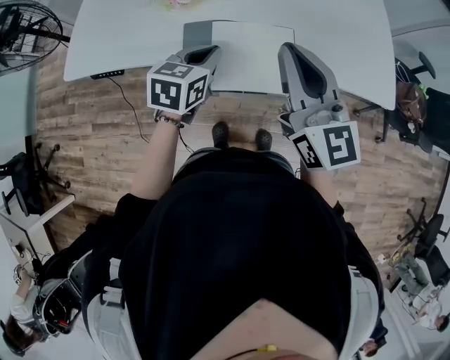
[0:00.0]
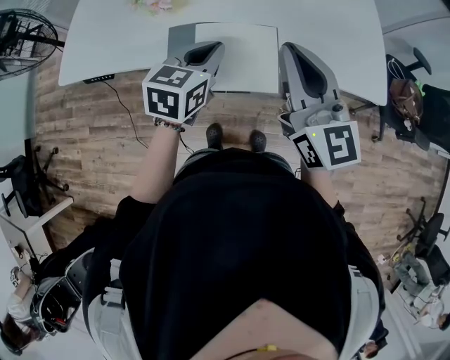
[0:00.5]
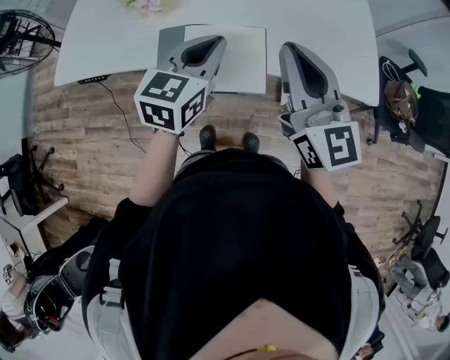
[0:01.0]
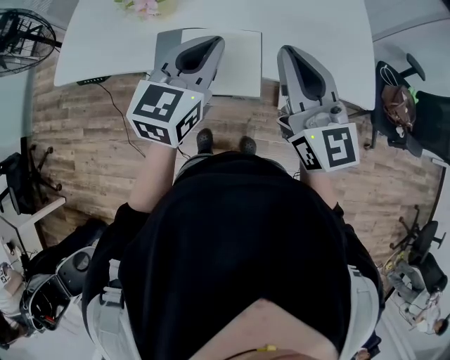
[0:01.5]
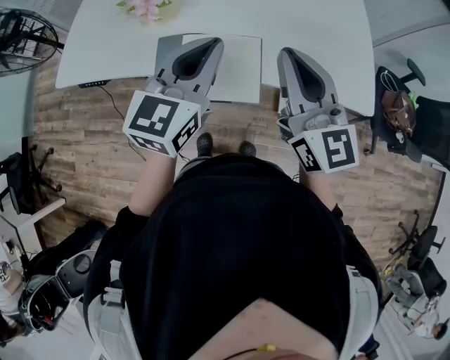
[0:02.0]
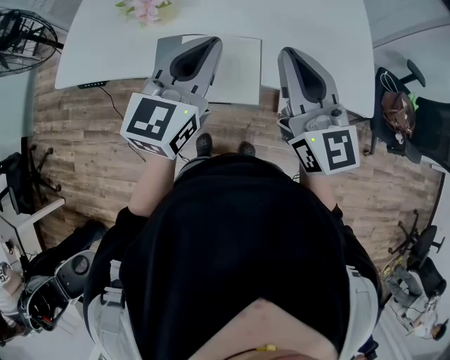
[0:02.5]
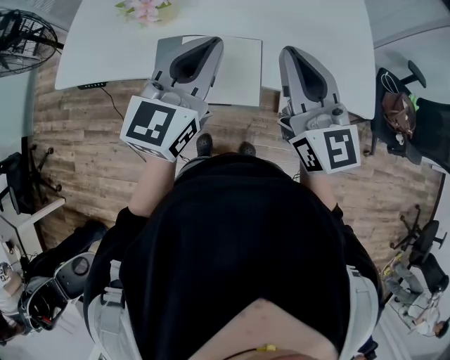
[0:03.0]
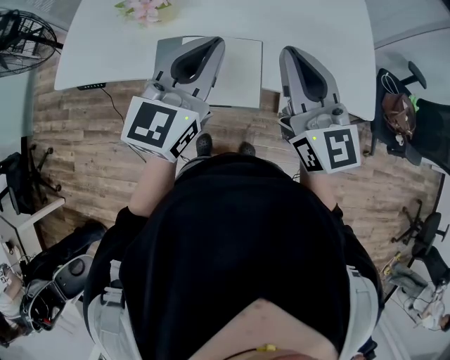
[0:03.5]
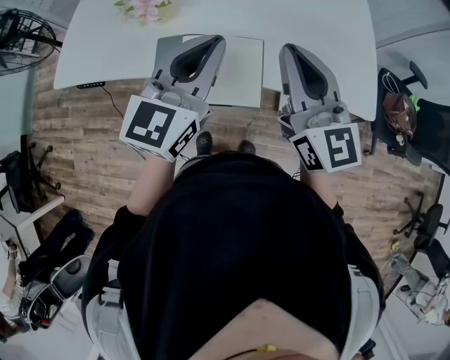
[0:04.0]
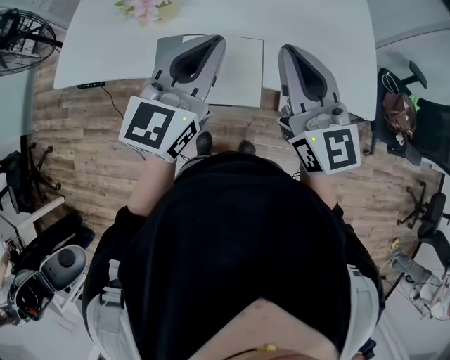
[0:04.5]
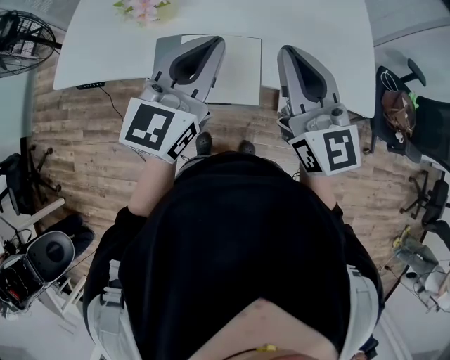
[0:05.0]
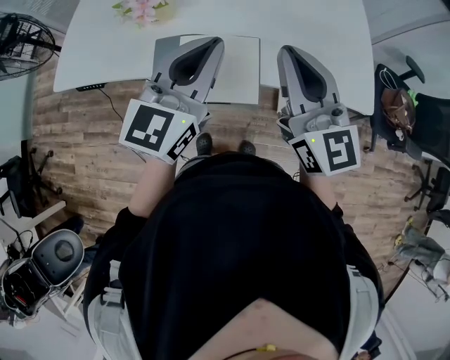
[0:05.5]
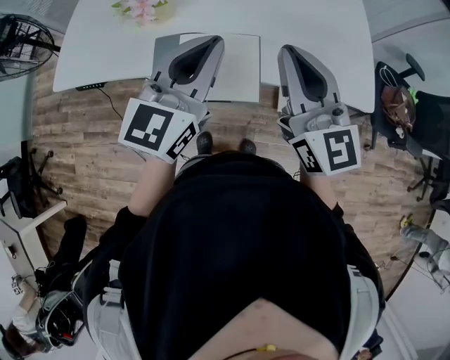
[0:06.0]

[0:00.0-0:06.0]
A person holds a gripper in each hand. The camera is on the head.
0:00.0 to 0:02.0: The right gripper shifts some 10 cm to the right. Meanwhile the left gripper shifts some 20 cm upward and to the right, and rotates roughly 30 degrees.
0:02.0 to 0:06.0: The grippers stay close to where they were, moving slightly.

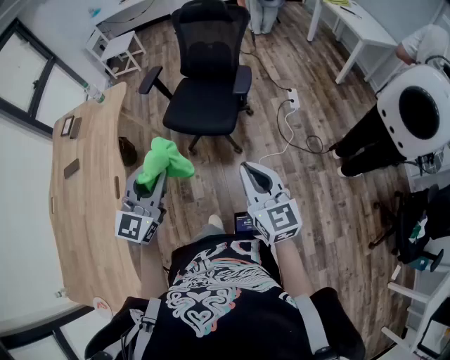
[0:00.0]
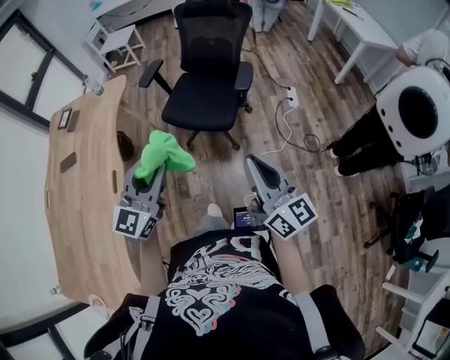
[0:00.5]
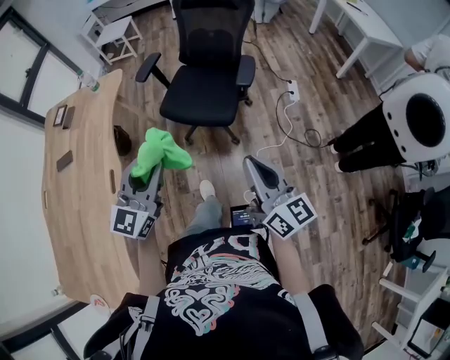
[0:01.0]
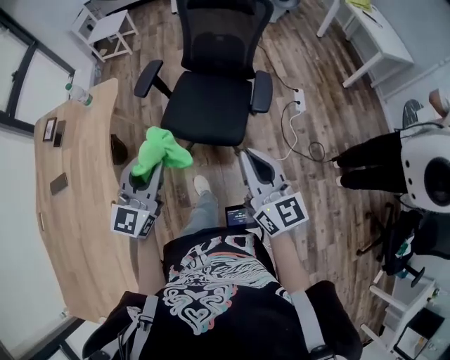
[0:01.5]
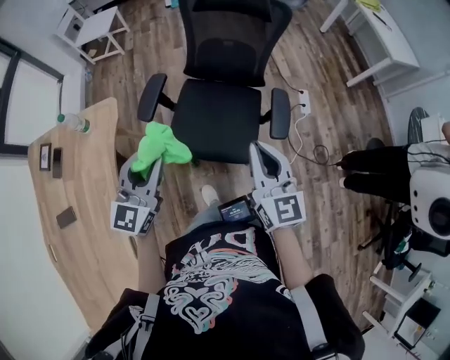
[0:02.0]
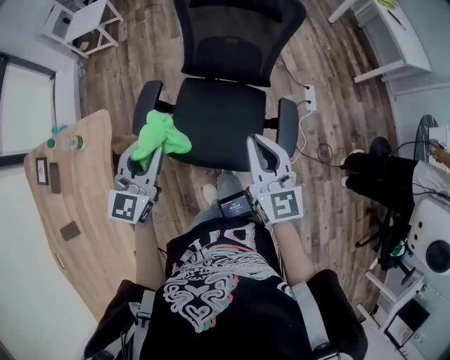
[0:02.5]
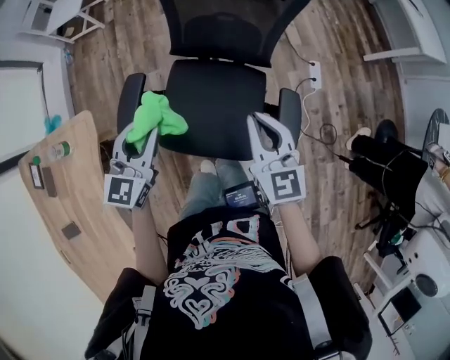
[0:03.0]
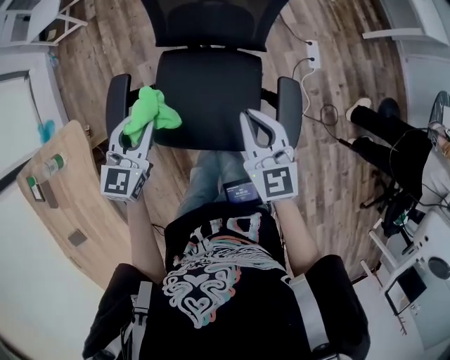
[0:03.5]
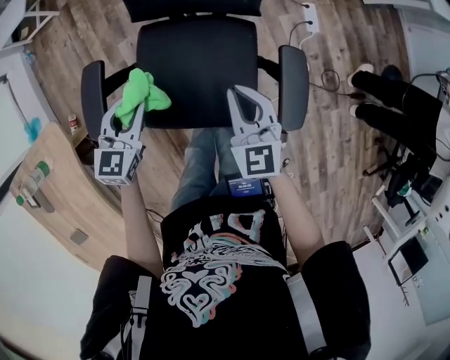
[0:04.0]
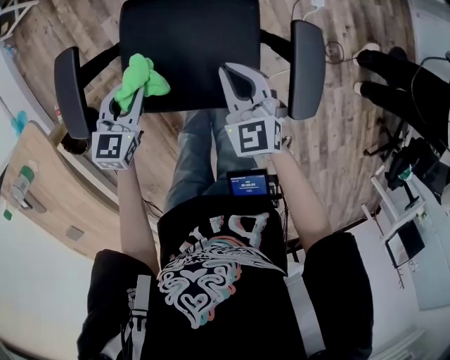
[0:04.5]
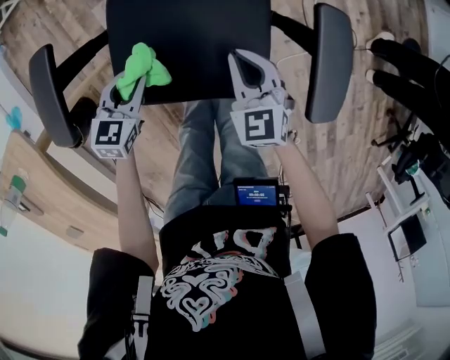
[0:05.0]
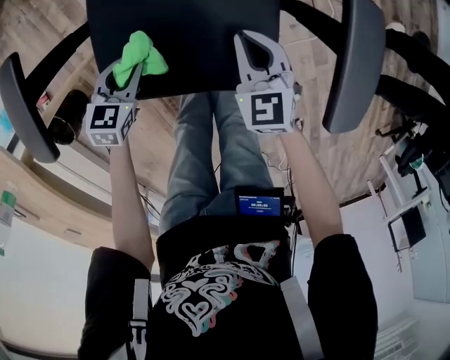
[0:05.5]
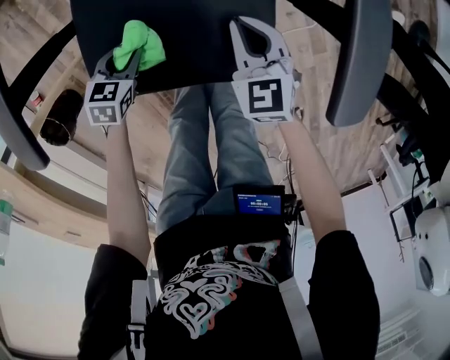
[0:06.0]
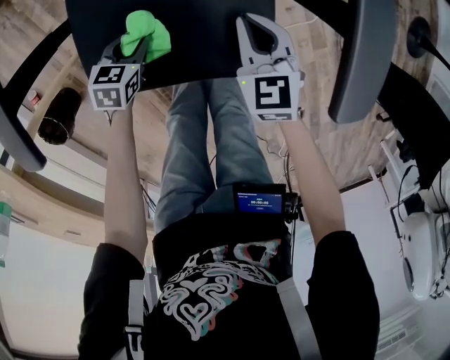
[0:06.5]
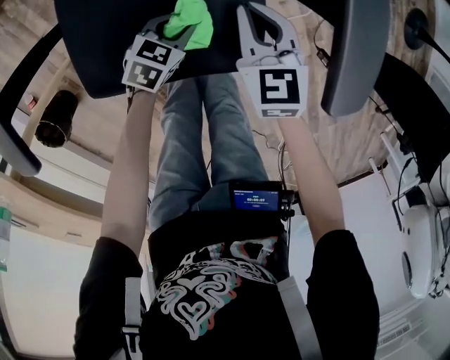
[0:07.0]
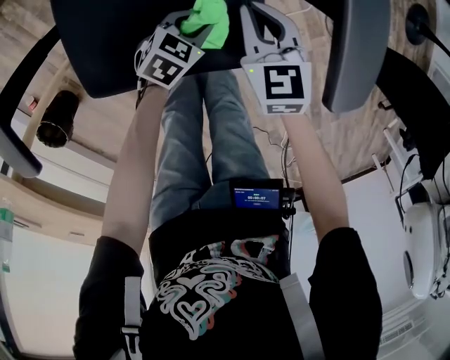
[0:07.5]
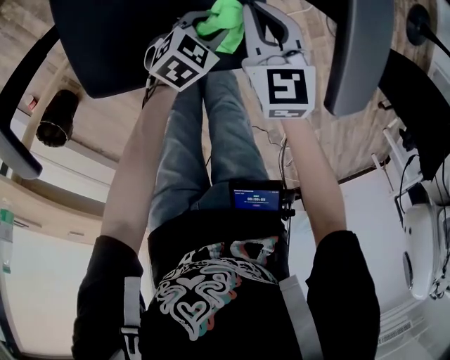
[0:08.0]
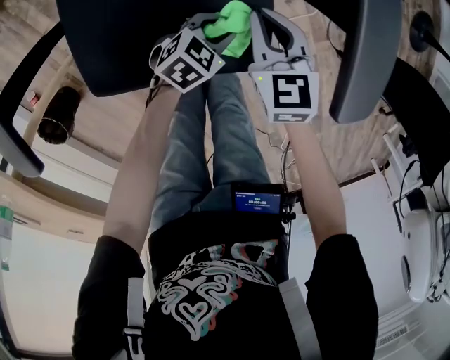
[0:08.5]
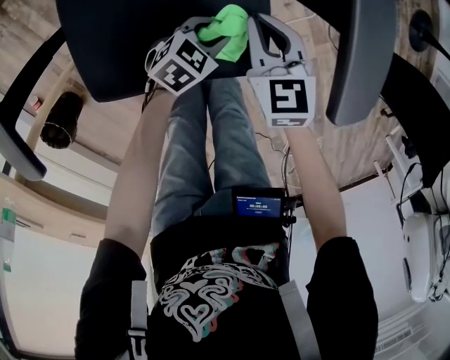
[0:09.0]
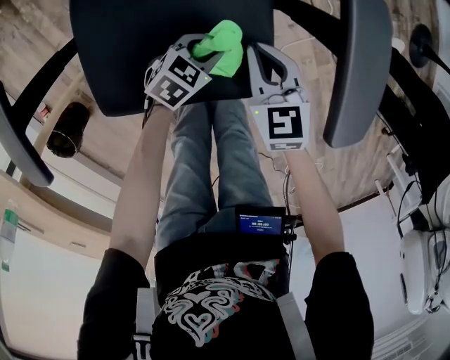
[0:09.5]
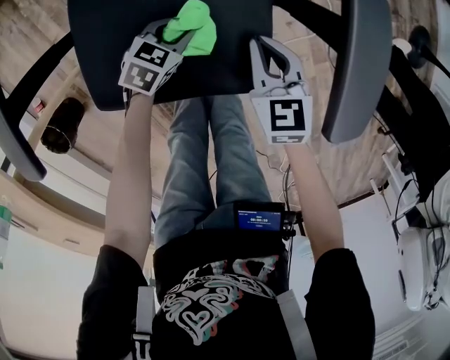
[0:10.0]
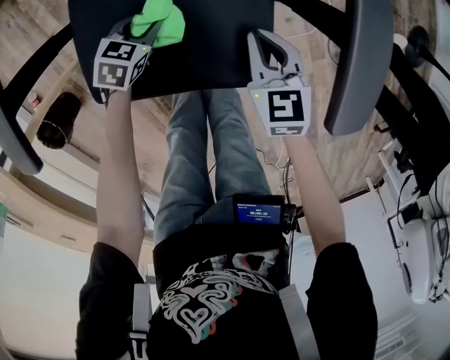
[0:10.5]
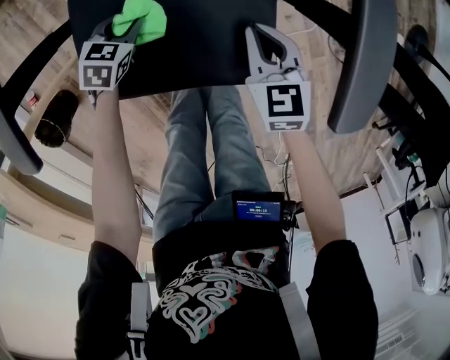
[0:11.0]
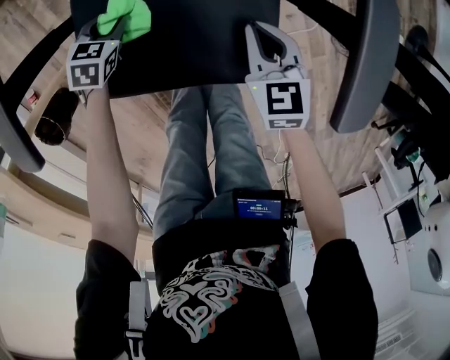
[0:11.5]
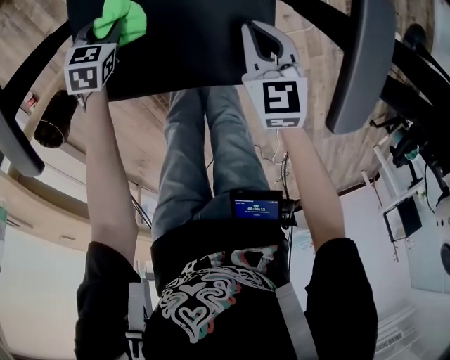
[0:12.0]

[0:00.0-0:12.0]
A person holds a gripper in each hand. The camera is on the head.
0:00.0 to 0:02.0: Both grippers are carried forward, approximately 40 cm.
0:02.0 to 0:04.0: The grippers both shift downward and forward by some 40 cm. The right gripper turns by approximately 30 degrees, while the left gripper turns by some 30 degrees.
0:04.0 to 0:06.0: Both grippers travel together downward, approximately 30 cm. The left gripper changes its angle by about 30 degrees.
0:06.0 to 0:08.0: The left gripper moves to the right, some 25 cm, and turns by roughly 30 degrees.
0:08.0 to 0:10.0: The left gripper goes approximately 10 cm to the left.
0:10.0 to 0:12.0: The left gripper moves to the left, approximately 15 cm, and swivels some 20 degrees.

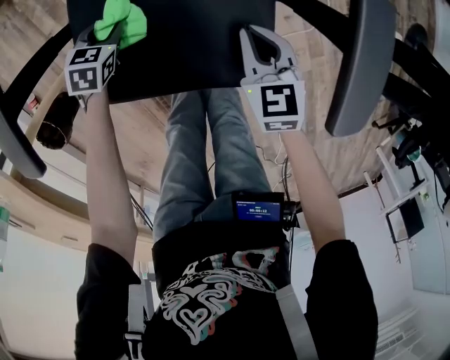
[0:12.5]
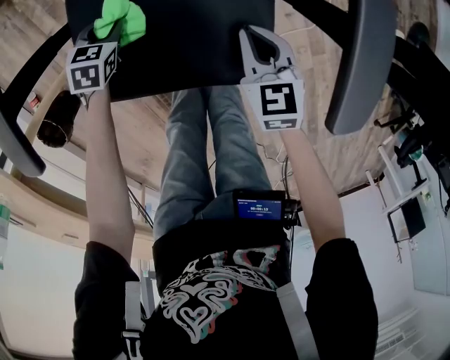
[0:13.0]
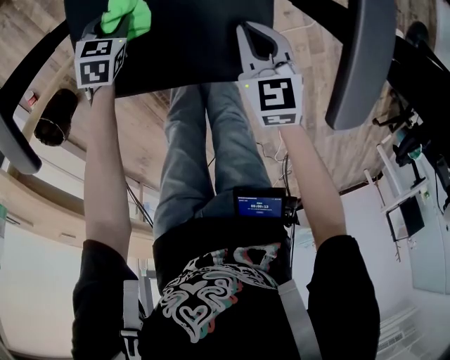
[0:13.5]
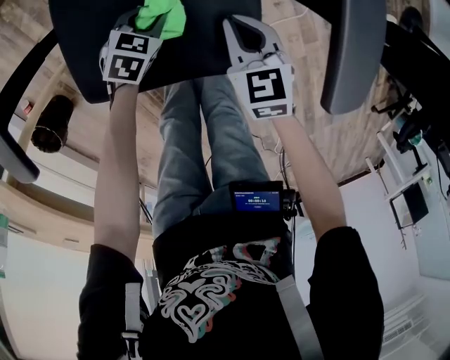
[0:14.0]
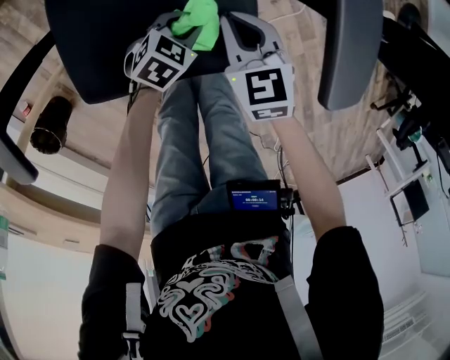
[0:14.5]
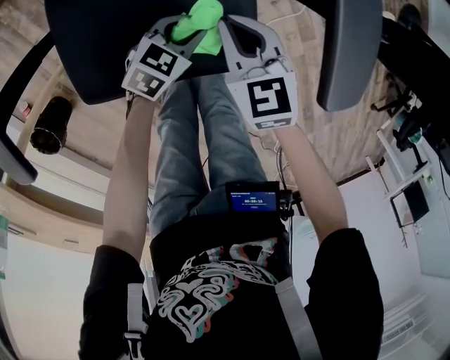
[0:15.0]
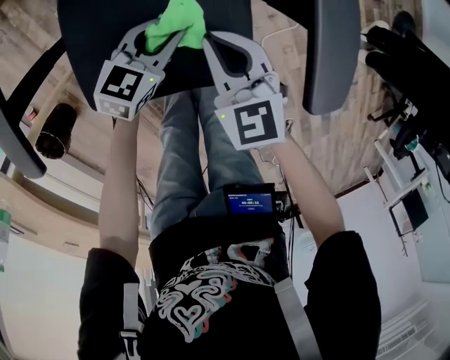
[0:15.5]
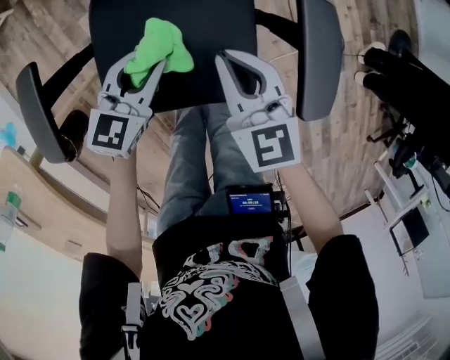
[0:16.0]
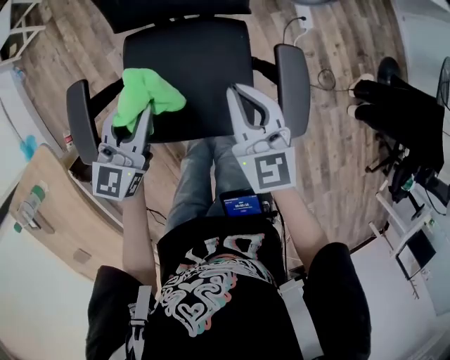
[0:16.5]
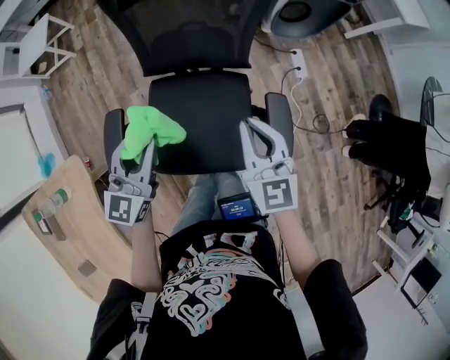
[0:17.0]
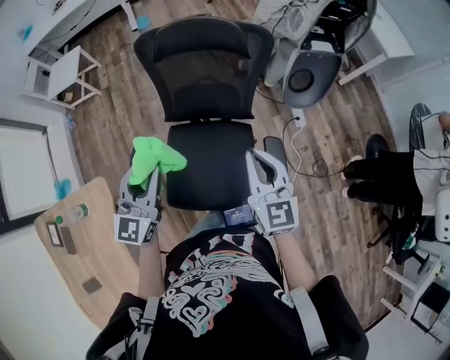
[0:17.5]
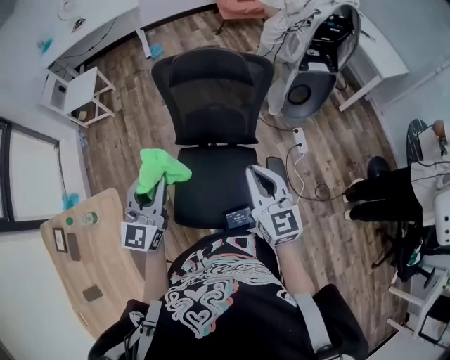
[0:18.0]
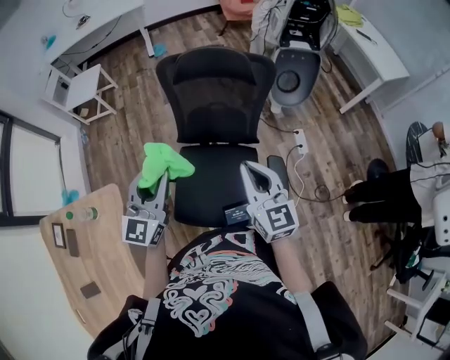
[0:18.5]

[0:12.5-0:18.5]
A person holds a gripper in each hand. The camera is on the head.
0:12.5 to 0:14.5: The left gripper moves to the right, approximately 25 cm, and rotates some 30 degrees.
0:14.5 to 0:16.5: The left gripper shifts approximately 40 cm upward and to the left, and tilts its fingers about 40 degrees upward. The right gripper is displaced upward by roughly 30 cm, and changes its angle by approximately 20 degrees.
0:16.5 to 0:18.5: The grippers both shift upward by about 30 cm. The left gripper turns by approximately 30 degrees.

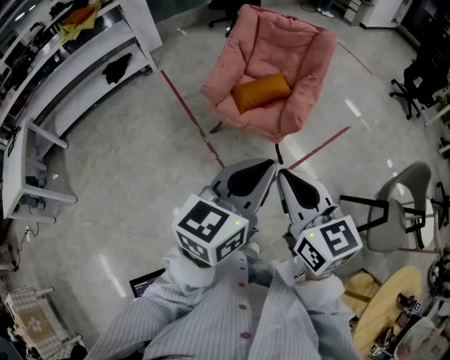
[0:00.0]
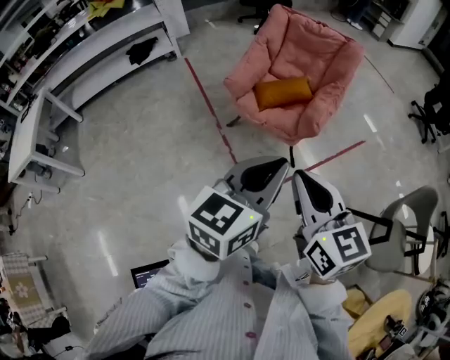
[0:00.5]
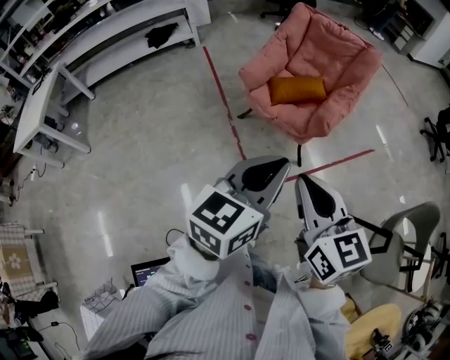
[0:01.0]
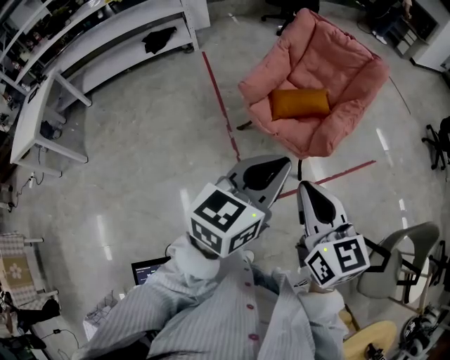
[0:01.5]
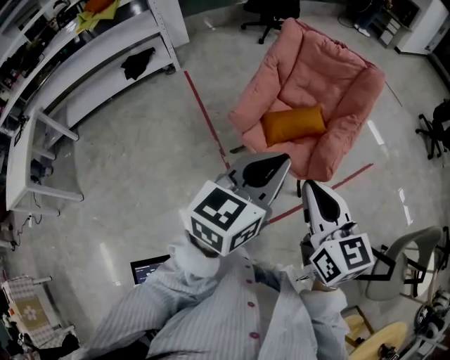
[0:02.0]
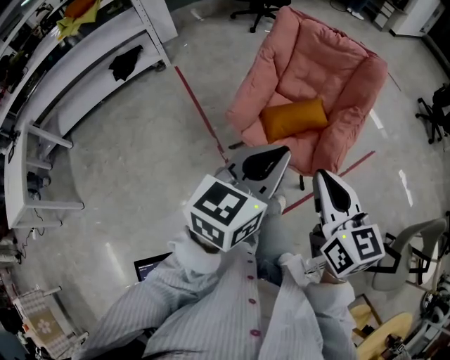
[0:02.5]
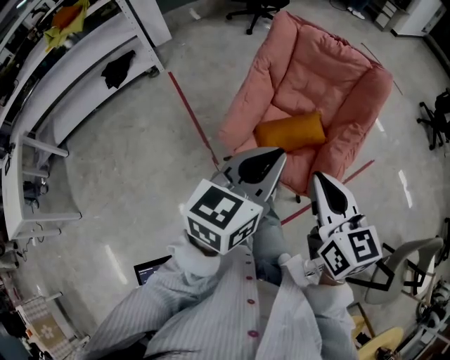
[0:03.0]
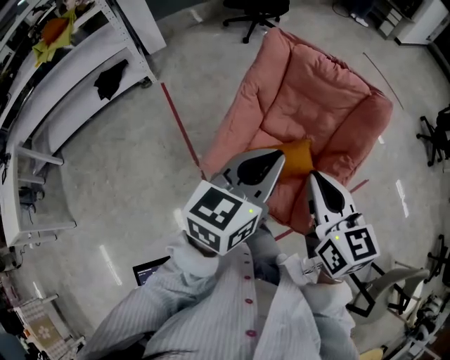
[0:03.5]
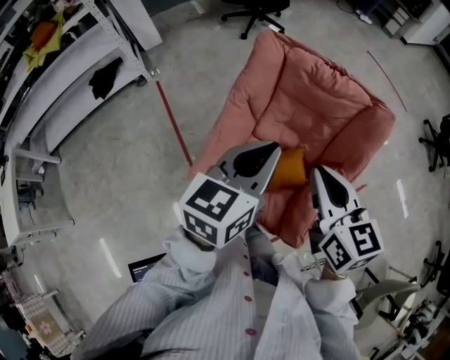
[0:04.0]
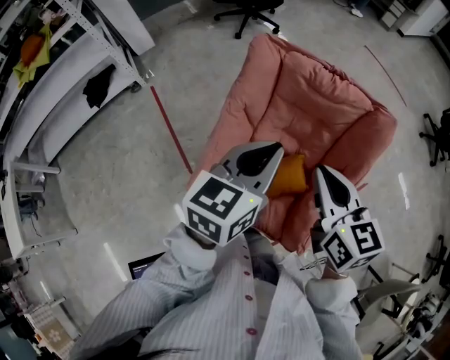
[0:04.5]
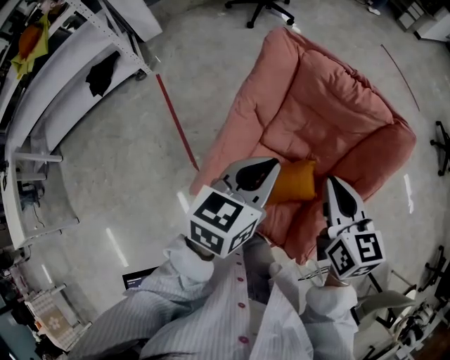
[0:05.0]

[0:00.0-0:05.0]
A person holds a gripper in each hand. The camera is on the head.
0:00.0 to 0:02.5: Both grippers travel together forward, approximately 30 cm.
0:02.5 to 0:05.0: The pair of grippers is taken forward, about 50 cm.
